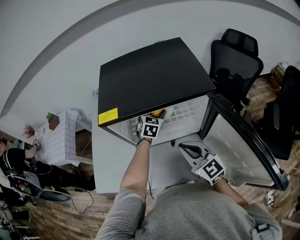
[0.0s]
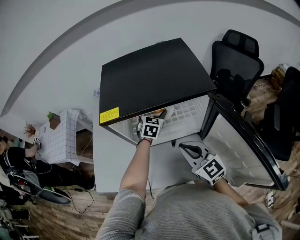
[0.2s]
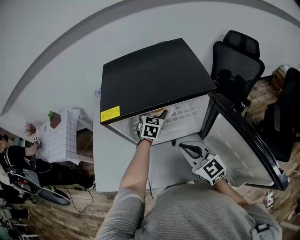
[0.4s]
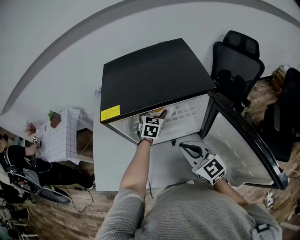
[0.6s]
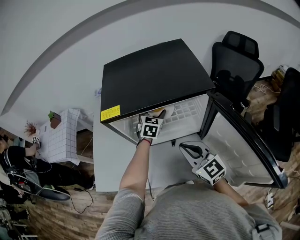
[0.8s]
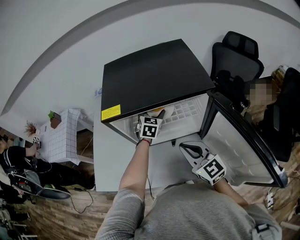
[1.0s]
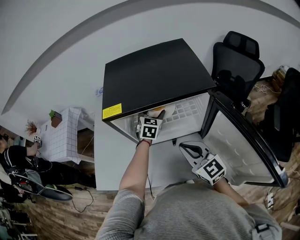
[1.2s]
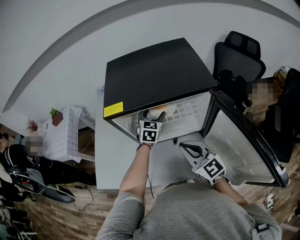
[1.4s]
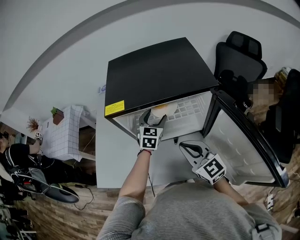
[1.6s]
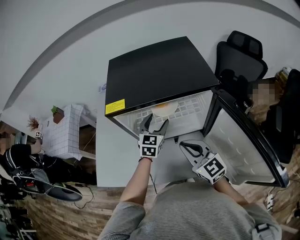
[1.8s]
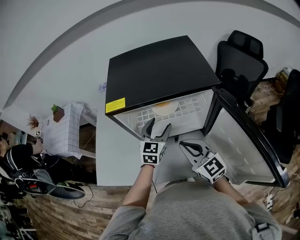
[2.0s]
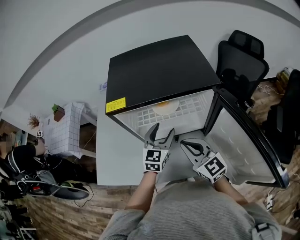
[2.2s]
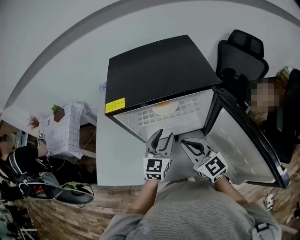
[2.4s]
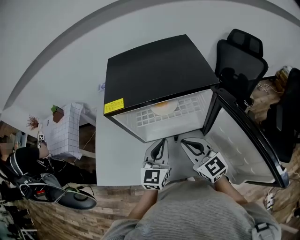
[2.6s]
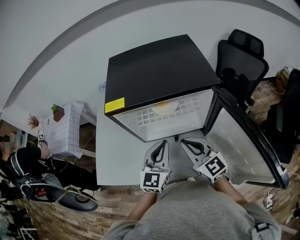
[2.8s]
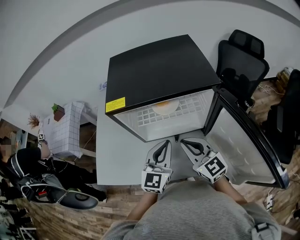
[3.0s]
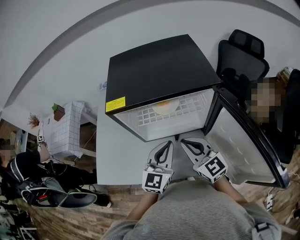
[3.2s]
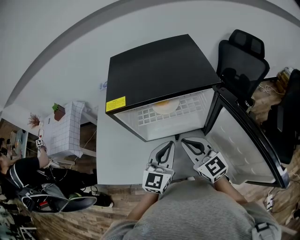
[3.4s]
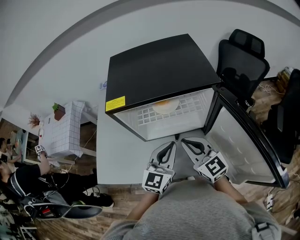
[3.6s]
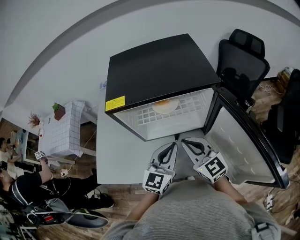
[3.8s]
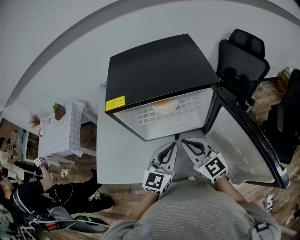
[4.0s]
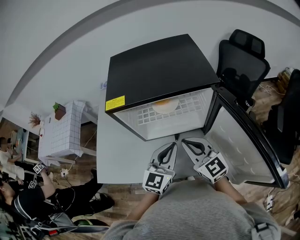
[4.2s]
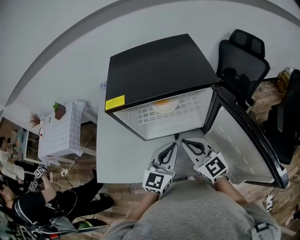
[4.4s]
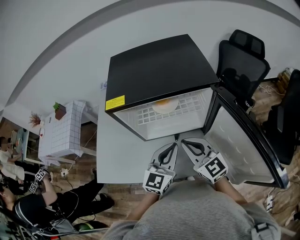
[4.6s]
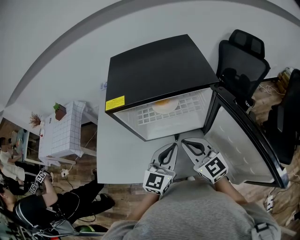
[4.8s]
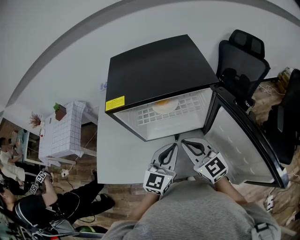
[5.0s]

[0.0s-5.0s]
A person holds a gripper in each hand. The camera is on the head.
0.0s to 1.6s: The left gripper is displaced backward by approximately 5 cm.
1.6s to 3.4s: The left gripper heads backward, covering some 20 cm, turns by some 20 degrees, and closes its fingers.
3.4s to 5.0s: There are only small adjustments of the grippers.

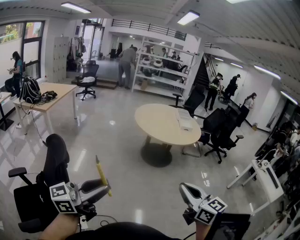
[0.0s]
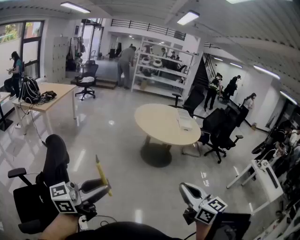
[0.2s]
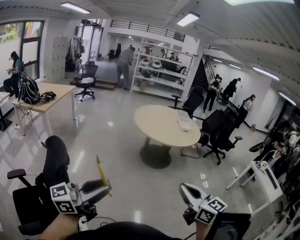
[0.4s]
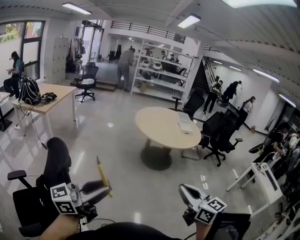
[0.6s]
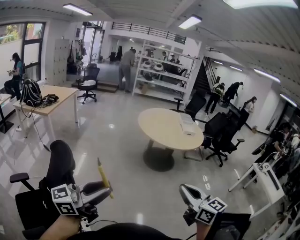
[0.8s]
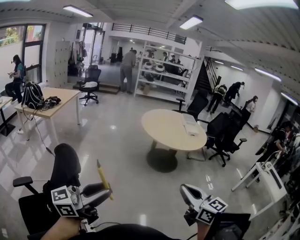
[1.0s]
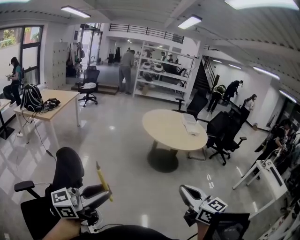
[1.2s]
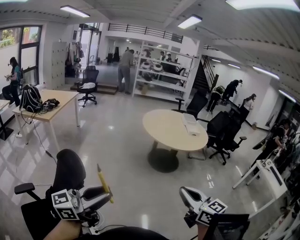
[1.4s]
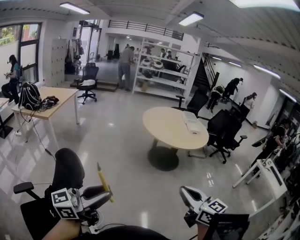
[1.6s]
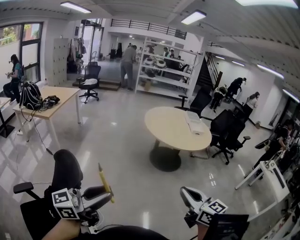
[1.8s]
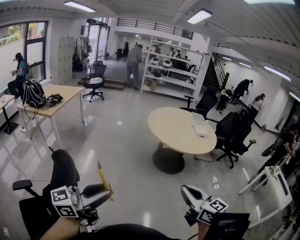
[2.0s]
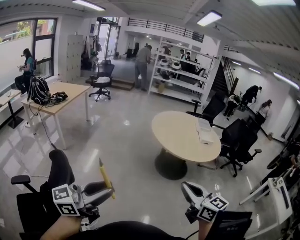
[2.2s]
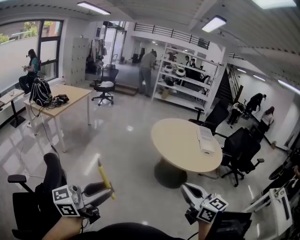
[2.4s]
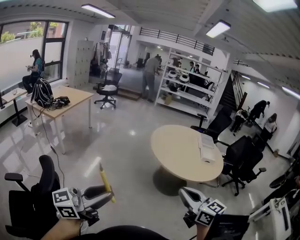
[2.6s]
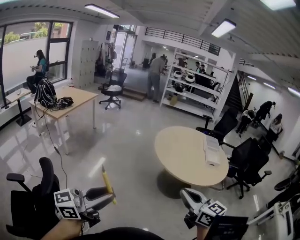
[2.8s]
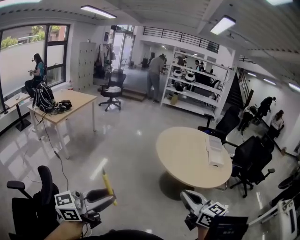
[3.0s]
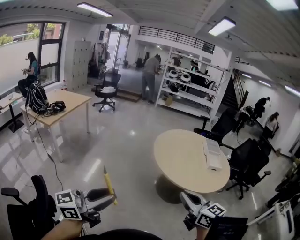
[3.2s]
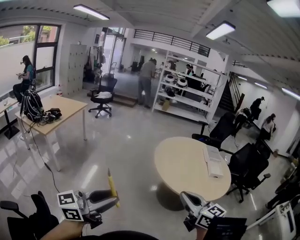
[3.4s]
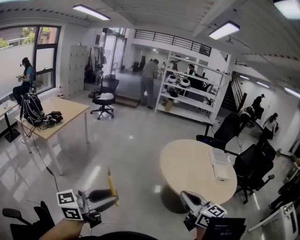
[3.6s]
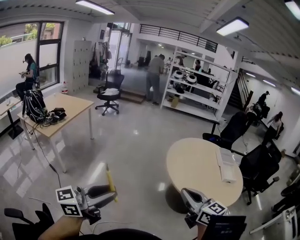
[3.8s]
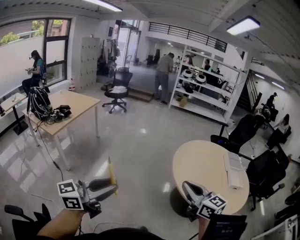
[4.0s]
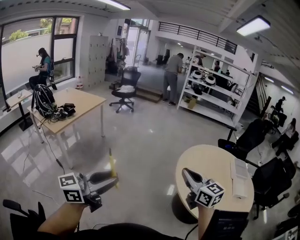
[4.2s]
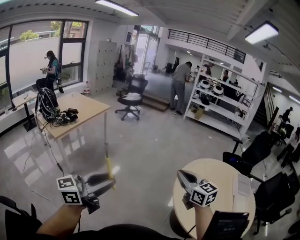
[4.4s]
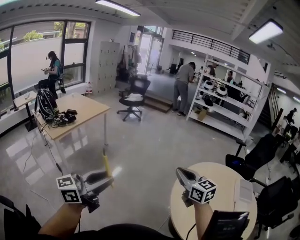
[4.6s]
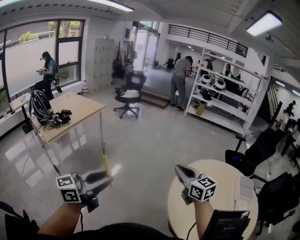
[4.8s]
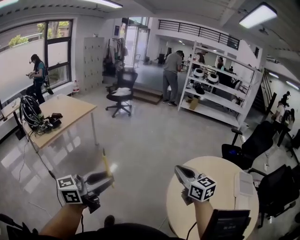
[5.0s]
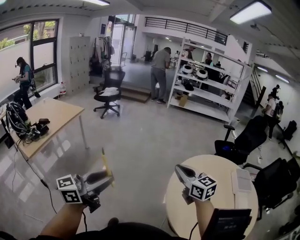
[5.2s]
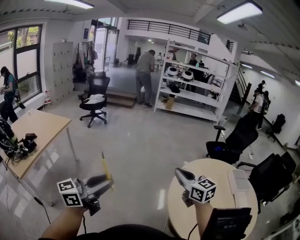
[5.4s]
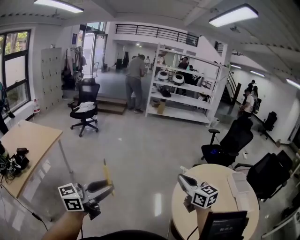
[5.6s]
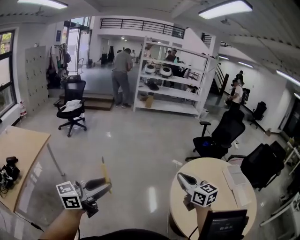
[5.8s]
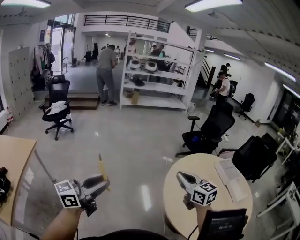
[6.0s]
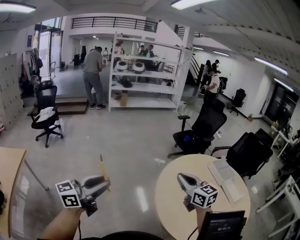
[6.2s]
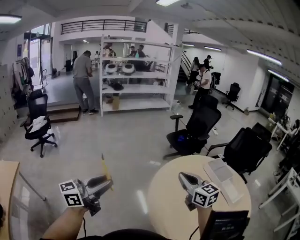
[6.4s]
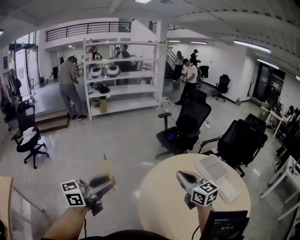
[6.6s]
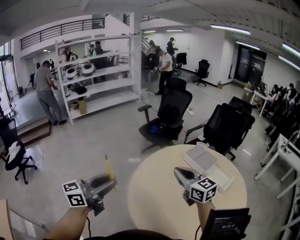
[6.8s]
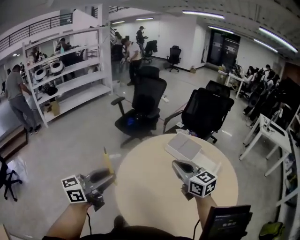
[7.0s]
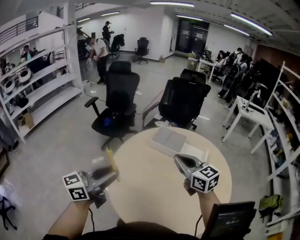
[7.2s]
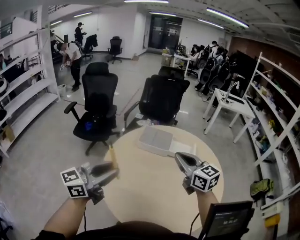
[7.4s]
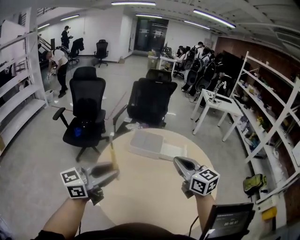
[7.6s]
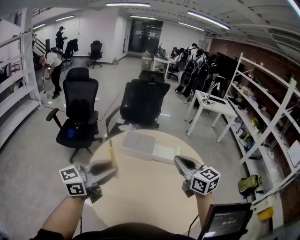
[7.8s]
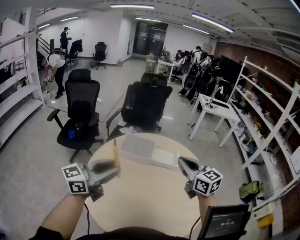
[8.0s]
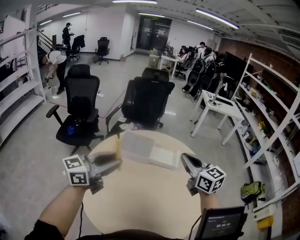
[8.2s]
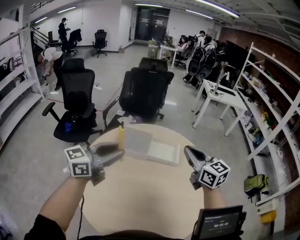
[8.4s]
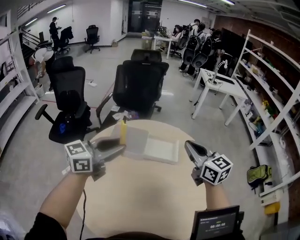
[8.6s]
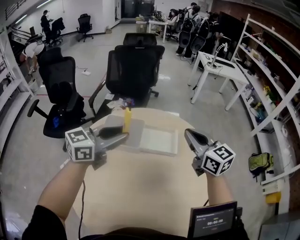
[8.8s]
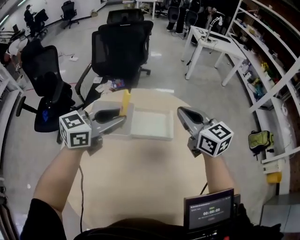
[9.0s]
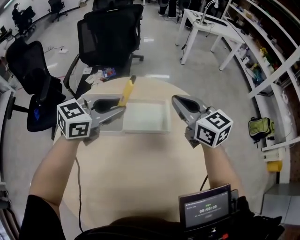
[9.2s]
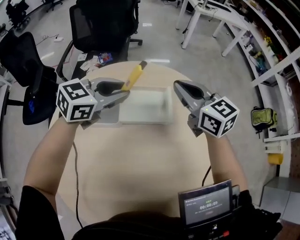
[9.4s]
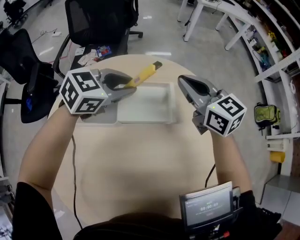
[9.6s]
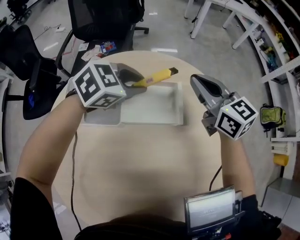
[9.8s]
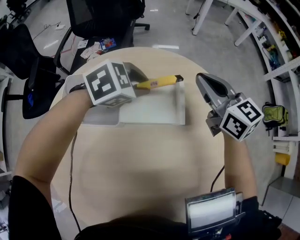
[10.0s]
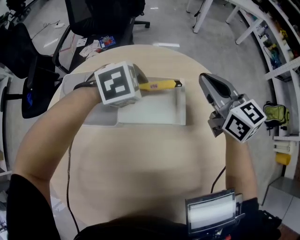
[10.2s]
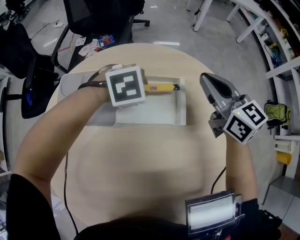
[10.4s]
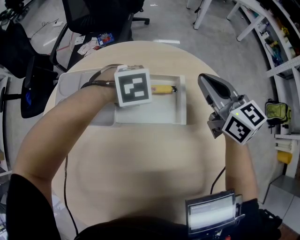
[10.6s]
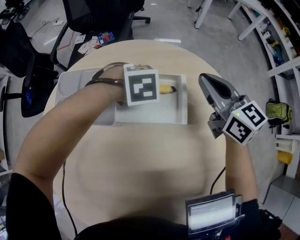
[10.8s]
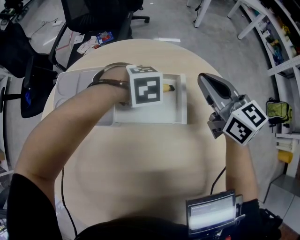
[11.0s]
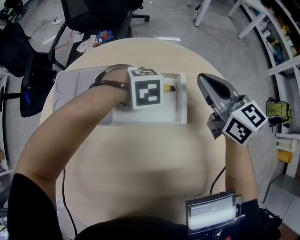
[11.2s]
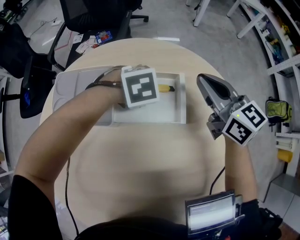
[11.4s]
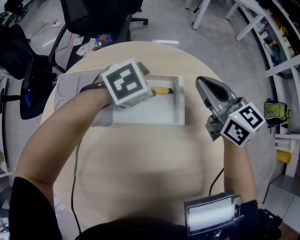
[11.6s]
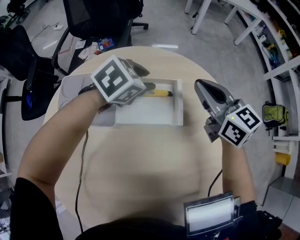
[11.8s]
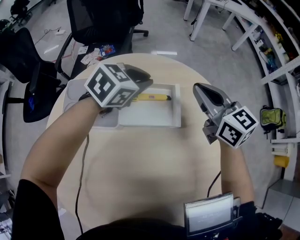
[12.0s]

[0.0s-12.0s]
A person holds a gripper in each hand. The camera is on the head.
0.0s to 1.6s: Both grippers travel together to the left, some 15 cm.
1.6s to 3.0s: The right gripper is displaced forward by about 35 cm, while the left gripper is displaced forward and to the right by about 30 cm.
3.0s to 4.4s: The two grippers travel together, forward and to the left, roughly 50 cm.
4.4s to 6.0s: The left gripper ends up approximately 60 cm from where it was, and swivels about 30 degrees; the right gripper ends up roughly 40 cm from where it was, and turns by roughly 30 degrees.
6.0s to 7.6s: The pair of grippers is taken some 50 cm. The right gripper swivels roughly 70 degrees. Meanwhile the left gripper swivels some 70 degrees.
7.6s to 9.0s: Both grippers move forward and to the right, roughly 40 cm. The left gripper rotates about 20 degrees.
9.0s to 10.4s: The left gripper goes approximately 30 cm downward and forward, and tips its fingers downward by some 60 degrees. Meanwhile the right gripper moves downward and forward, approximately 20 cm.
10.4s to 12.0s: The left gripper shifts roughly 10 cm upward, rotates about 40 degrees, and opens, then closes again.

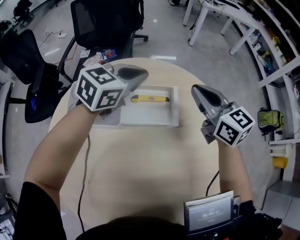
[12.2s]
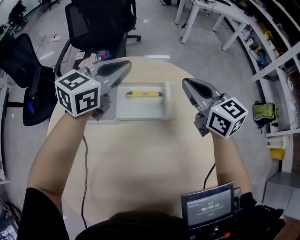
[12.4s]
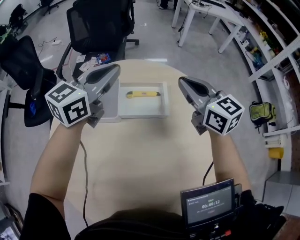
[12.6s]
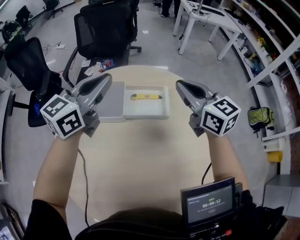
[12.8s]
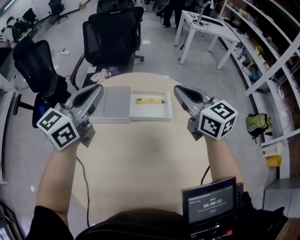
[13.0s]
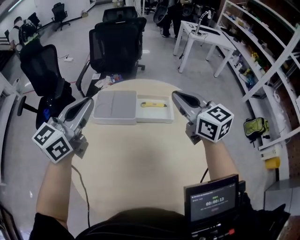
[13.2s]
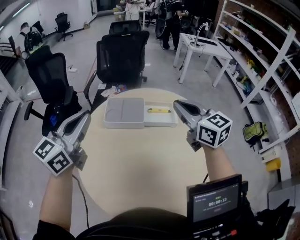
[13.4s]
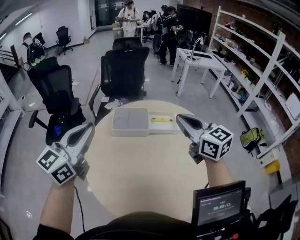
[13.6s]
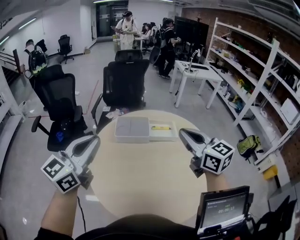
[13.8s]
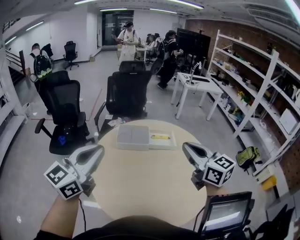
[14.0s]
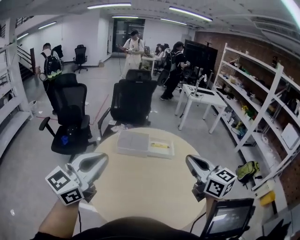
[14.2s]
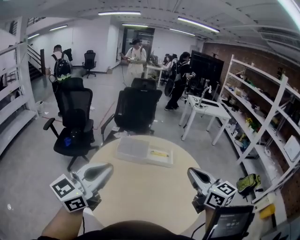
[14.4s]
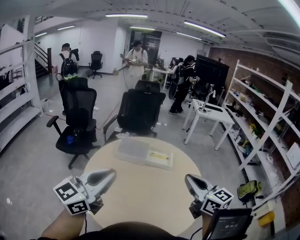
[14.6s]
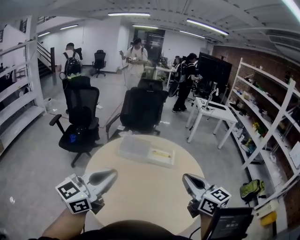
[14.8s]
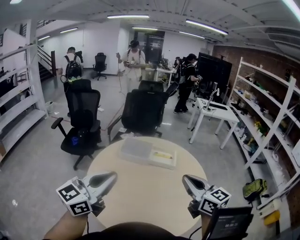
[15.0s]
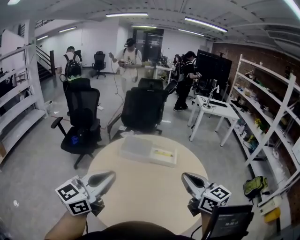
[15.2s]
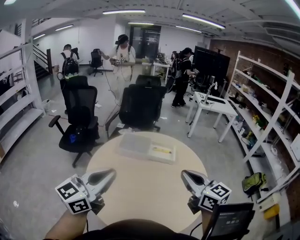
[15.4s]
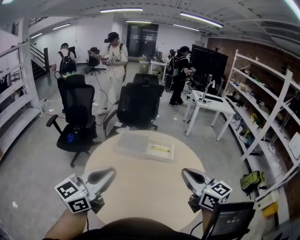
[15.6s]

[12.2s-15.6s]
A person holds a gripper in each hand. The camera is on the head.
12.2s to 13.8s: Both grippers are carried backward and to the left, some 50 cm. Both grippers move upward, approximately 30 cm. The left gripper angles its fingers upward, by approximately 30 degrees.
13.8s to 15.6s: The grippers both shift backward and to the right by approximately 15 cm.

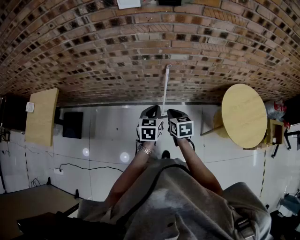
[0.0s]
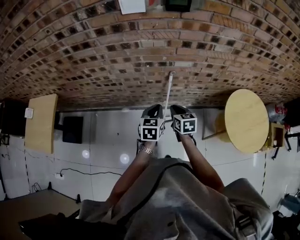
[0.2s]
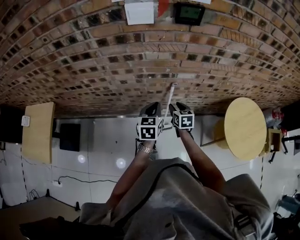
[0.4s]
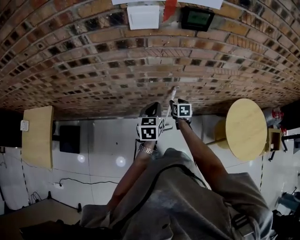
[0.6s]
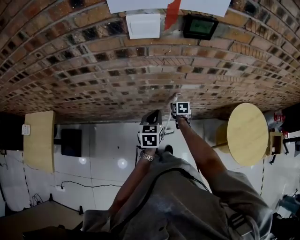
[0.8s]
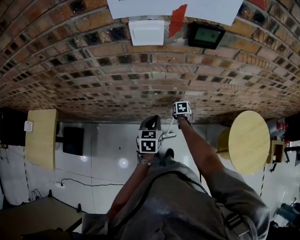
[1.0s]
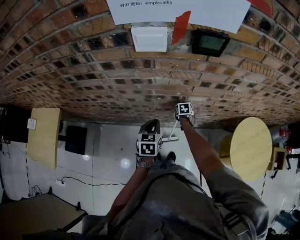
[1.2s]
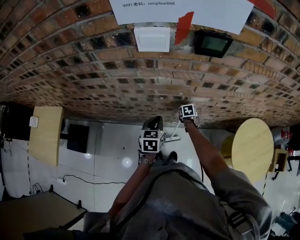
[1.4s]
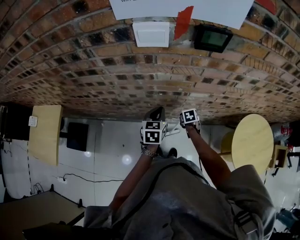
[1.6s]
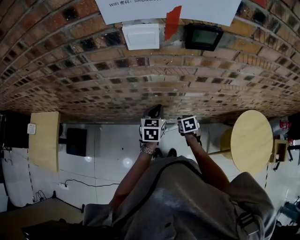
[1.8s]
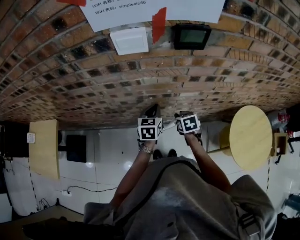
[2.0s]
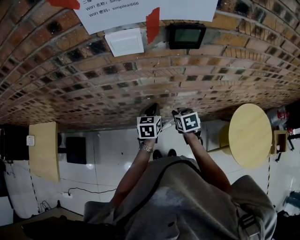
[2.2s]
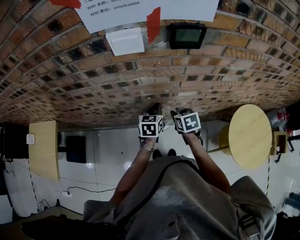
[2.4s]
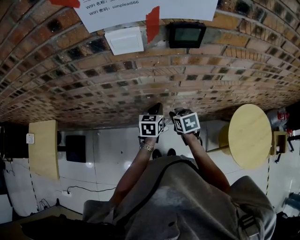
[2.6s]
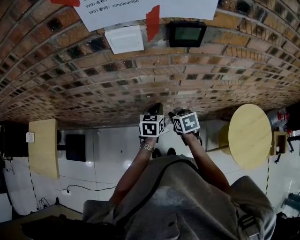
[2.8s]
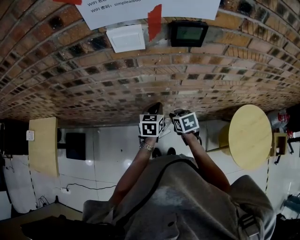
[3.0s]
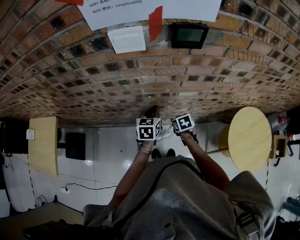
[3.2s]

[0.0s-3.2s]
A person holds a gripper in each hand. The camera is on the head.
0.0s to 1.6s: The left gripper moves forward, about 25 cm; the right gripper heads forward and downward, covering approximately 30 cm, swivels approximately 30 degrees, and opens.
1.6s to 3.2s: The right gripper is displaced upward by about 5 cm.
